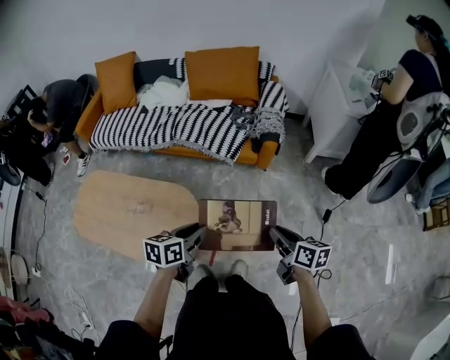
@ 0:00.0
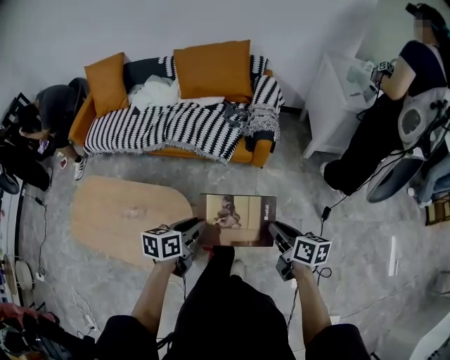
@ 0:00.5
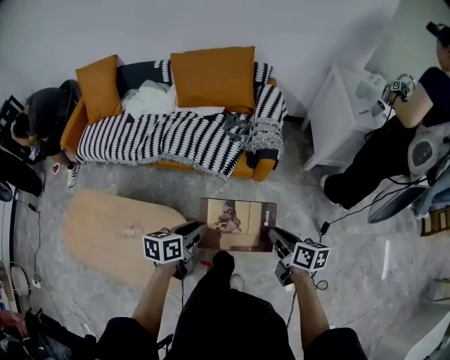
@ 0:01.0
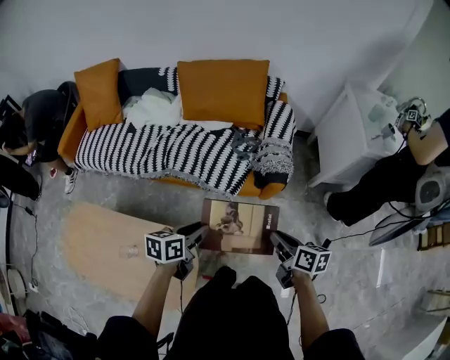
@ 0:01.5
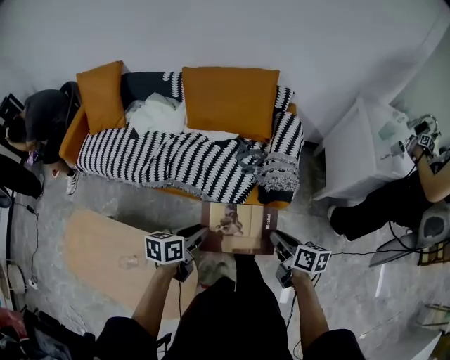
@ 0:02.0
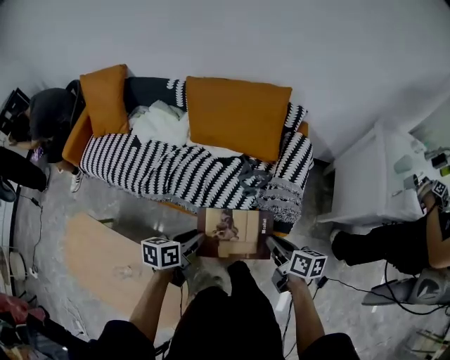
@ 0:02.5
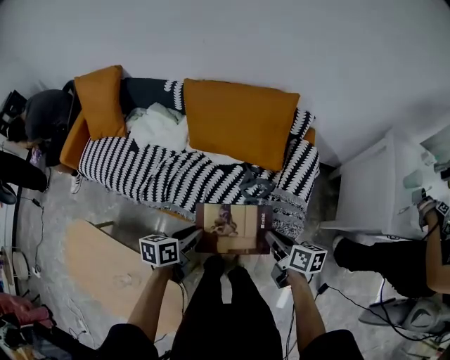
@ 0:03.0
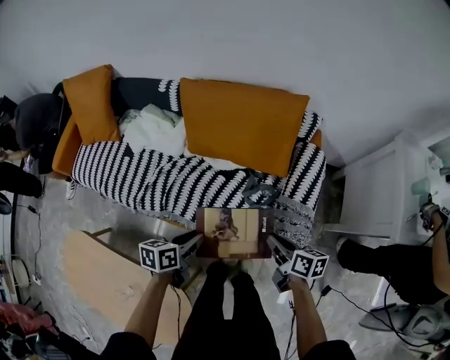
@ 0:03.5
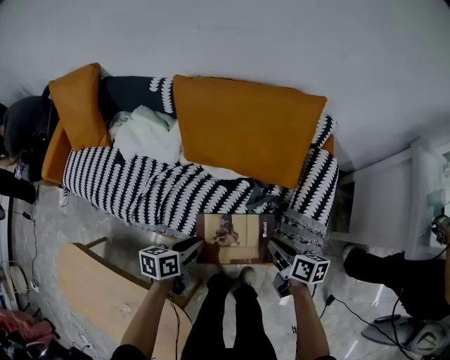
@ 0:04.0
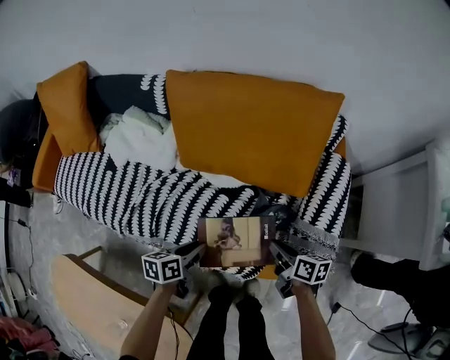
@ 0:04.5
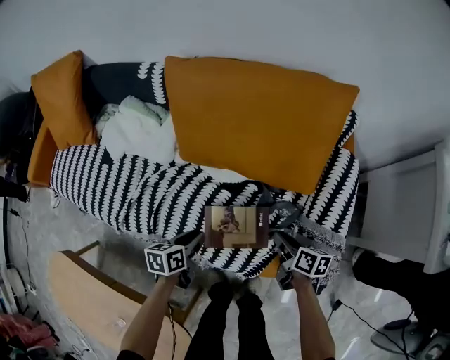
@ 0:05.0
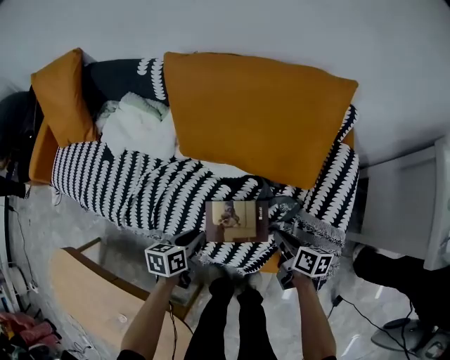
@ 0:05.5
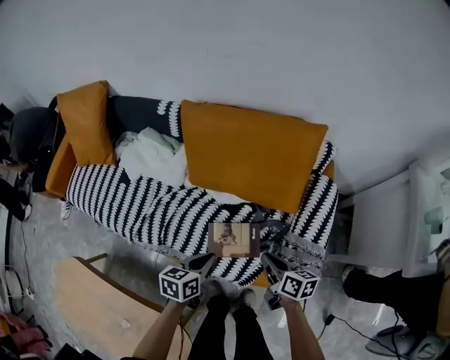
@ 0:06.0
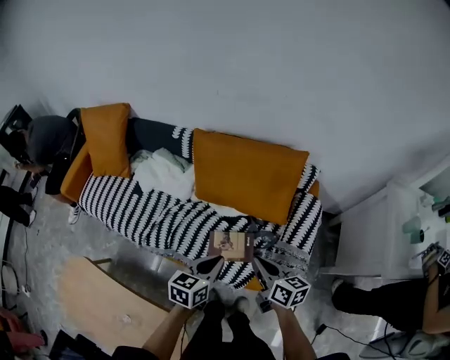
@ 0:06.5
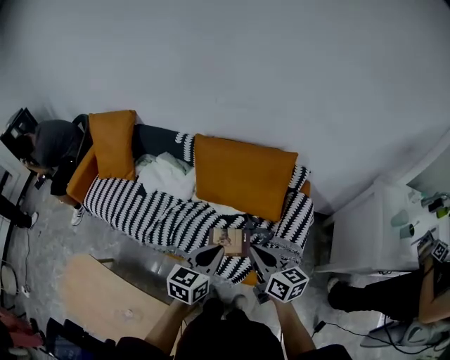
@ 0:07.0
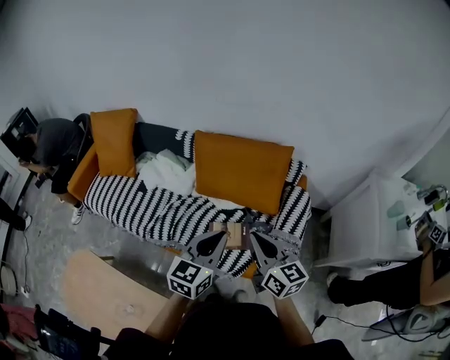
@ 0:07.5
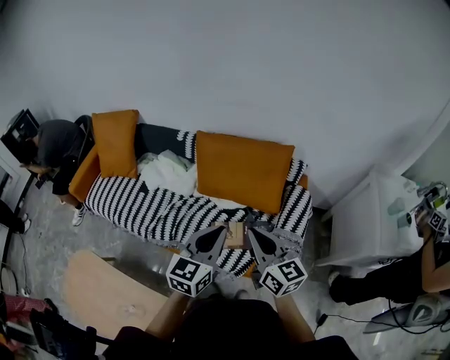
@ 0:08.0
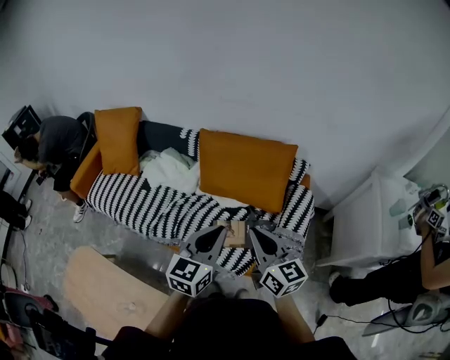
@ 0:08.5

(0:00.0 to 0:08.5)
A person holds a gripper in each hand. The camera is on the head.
0:00.0 - 0:02.0: The pair of grippers is taken forward, approximately 40 cm.
0:02.0 - 0:04.0: Both grippers travel together forward and downward, about 40 cm.
0:04.0 - 0:06.5: Both grippers travel together upward, some 20 cm. The left gripper rotates some 30 degrees, and closes. The right gripper changes its angle by some 20 degrees.
0:06.5 - 0:08.5: The left gripper is displaced upward by roughly 20 cm, and changes its angle by about 30 degrees. The right gripper heads upward and backward, covering approximately 20 cm, and changes its angle by approximately 30 degrees.

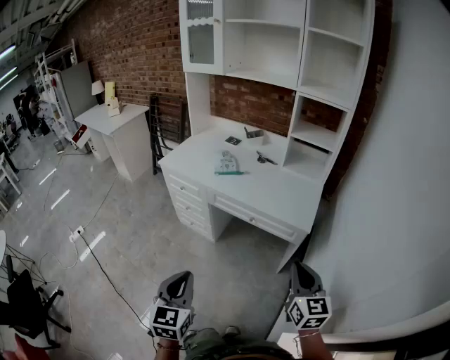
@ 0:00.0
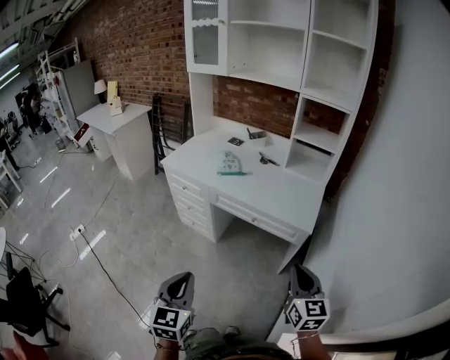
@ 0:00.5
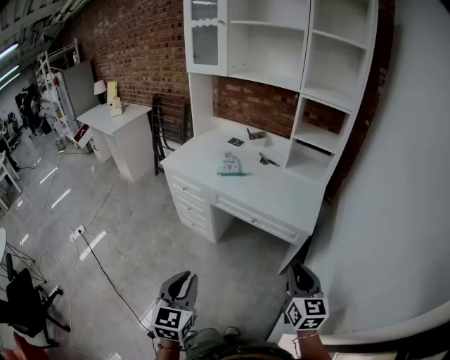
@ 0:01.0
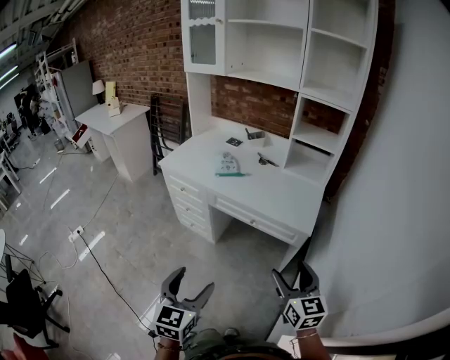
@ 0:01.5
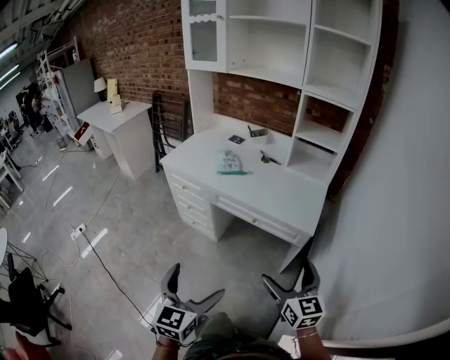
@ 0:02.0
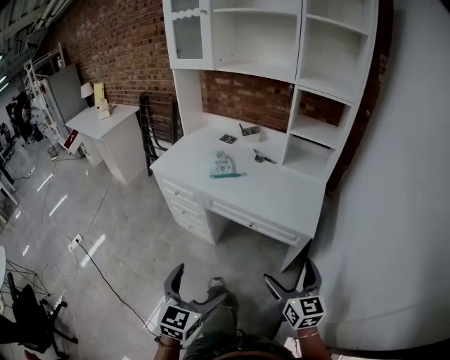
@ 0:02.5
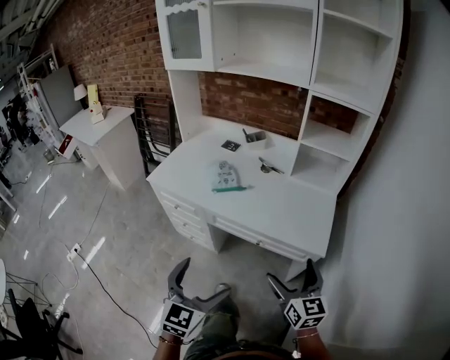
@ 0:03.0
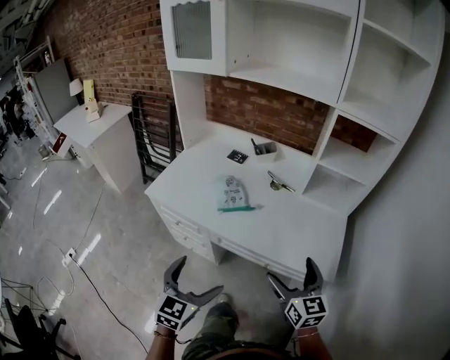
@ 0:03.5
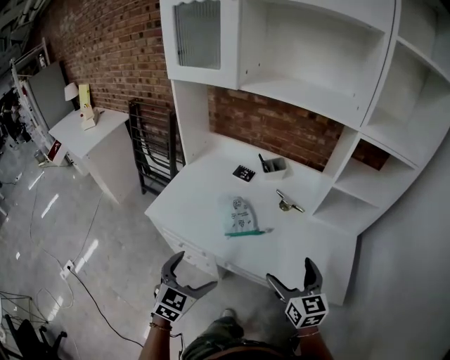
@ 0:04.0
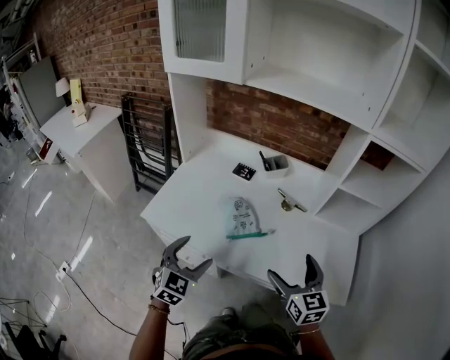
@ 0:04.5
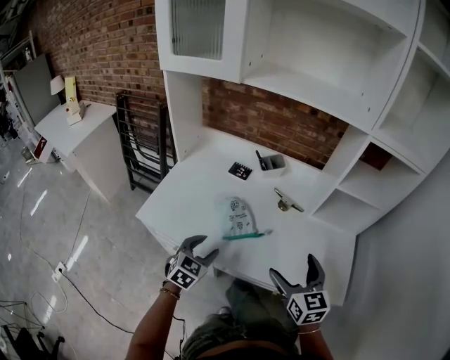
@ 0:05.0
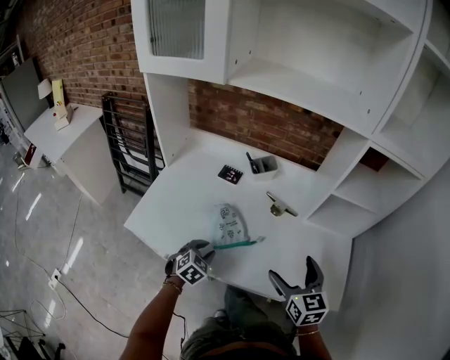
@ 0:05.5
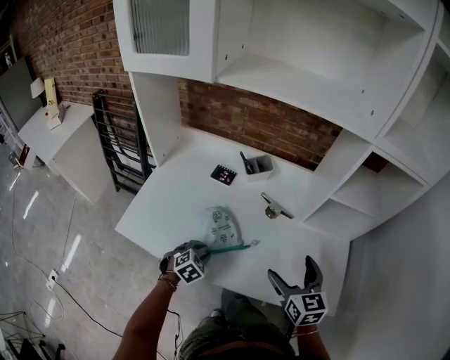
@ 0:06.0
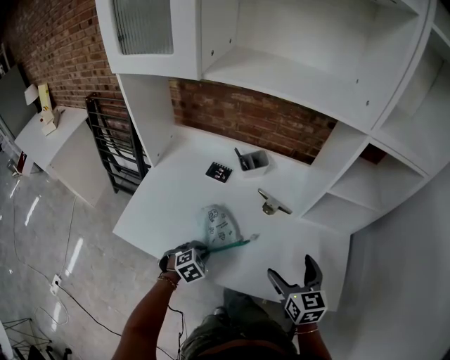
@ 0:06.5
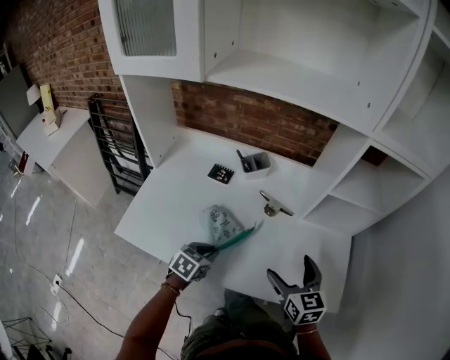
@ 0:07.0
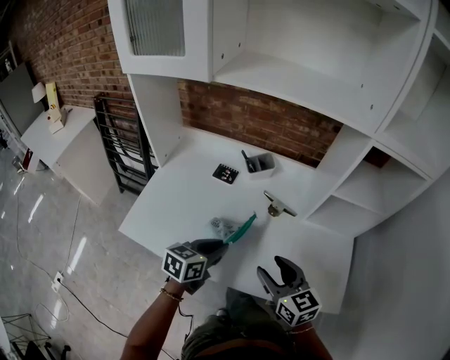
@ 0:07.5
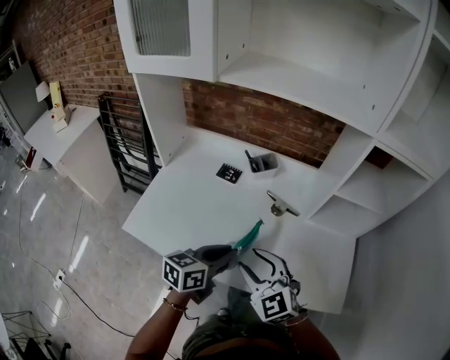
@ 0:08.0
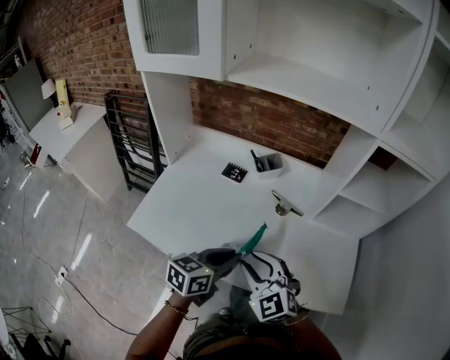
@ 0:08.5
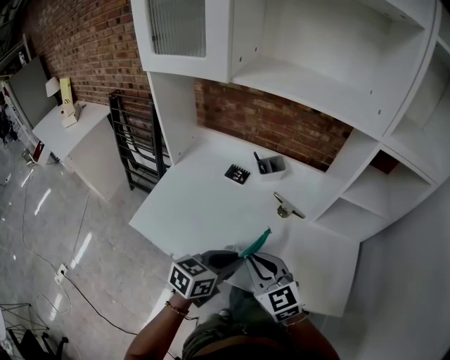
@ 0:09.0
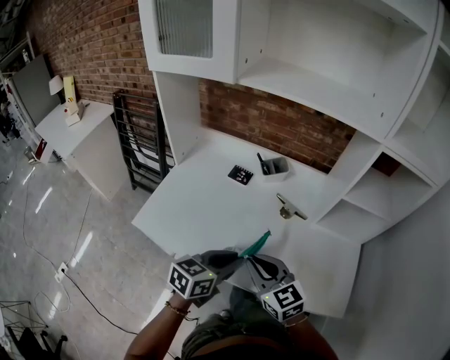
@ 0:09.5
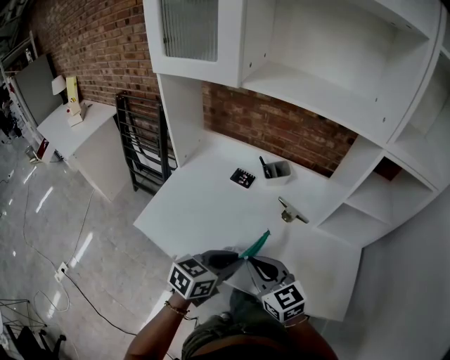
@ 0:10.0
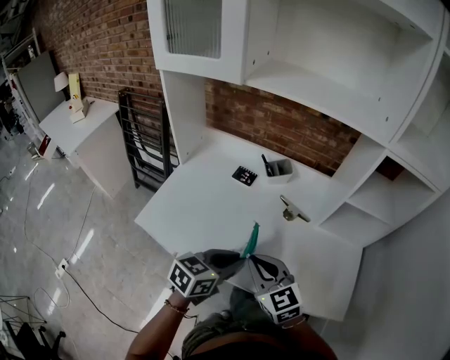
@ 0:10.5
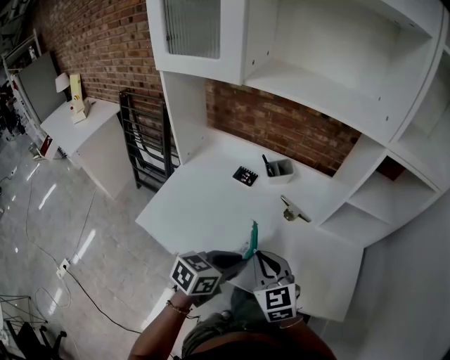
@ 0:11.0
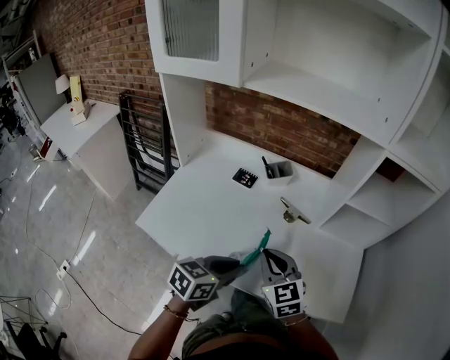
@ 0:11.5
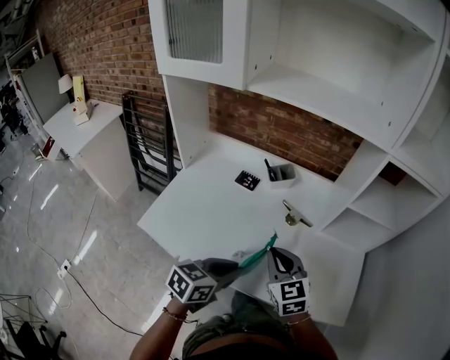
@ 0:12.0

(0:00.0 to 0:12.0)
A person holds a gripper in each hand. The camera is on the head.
0:00.0 - 0:02.0: The left gripper opens; the right gripper opens its fingers.
0:02.0 - 0:04.0: The pair of grippers is taken forward, about 40 cm. The left gripper turns by approximately 20 degrees.
0:04.0 - 0:06.0: The right gripper goes roughly 10 cm forward, while the left gripper shifts approximately 25 cm forward and downward, tilts its fingers approximately 30 degrees downward, and closes.
0:06.0 - 0:08.0: The right gripper travels to the left by some 15 cm, turns by about 40 degrees, and closes its fingers, while the left gripper goes approximately 20 cm upward, and points its fingers approximately 40 degrees further upward.
0:08.0 - 0:10.0: The right gripper rotates about 20 degrees.
0:10.0 - 0:12.0: The right gripper heads forward, covering about 5 cm.

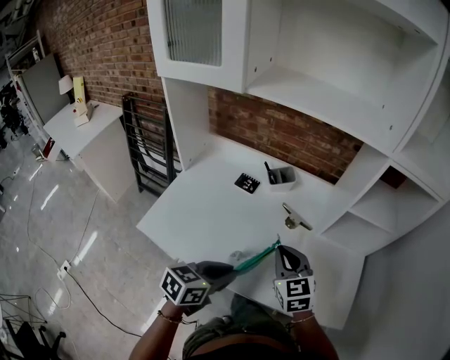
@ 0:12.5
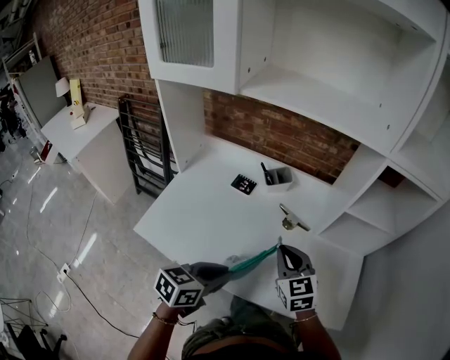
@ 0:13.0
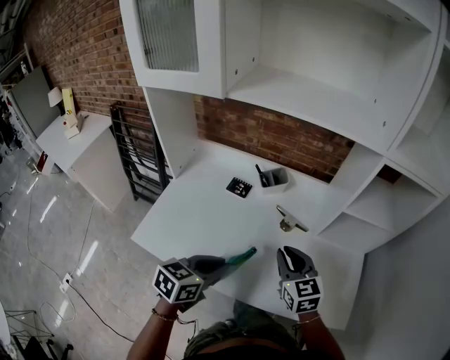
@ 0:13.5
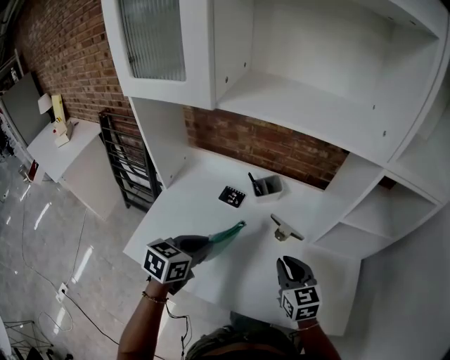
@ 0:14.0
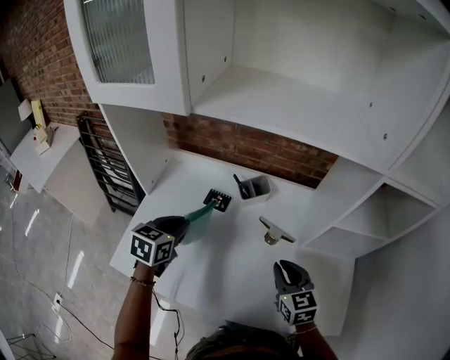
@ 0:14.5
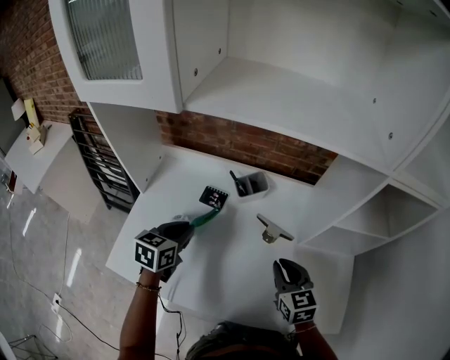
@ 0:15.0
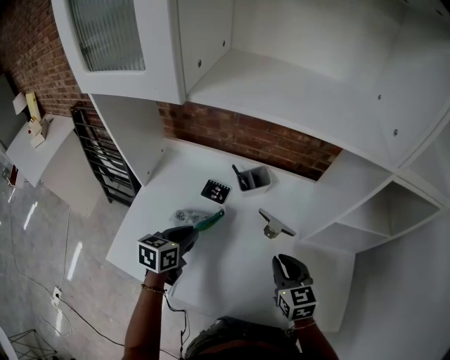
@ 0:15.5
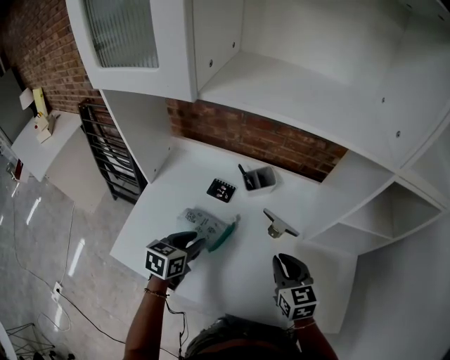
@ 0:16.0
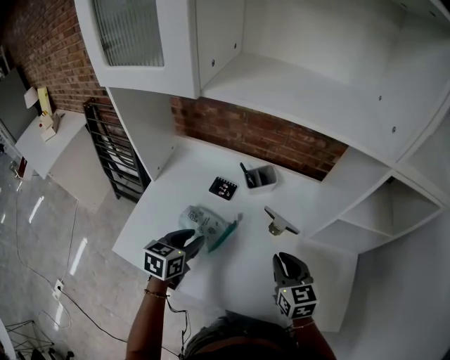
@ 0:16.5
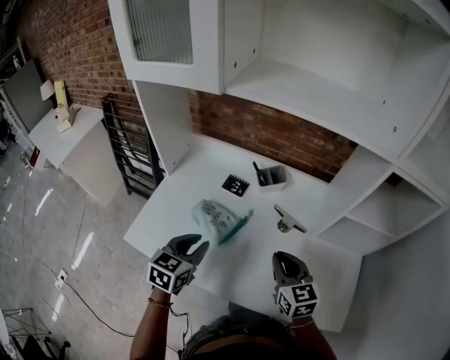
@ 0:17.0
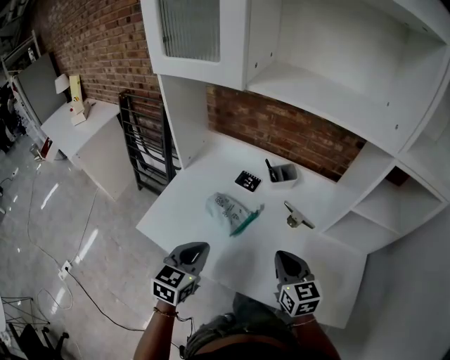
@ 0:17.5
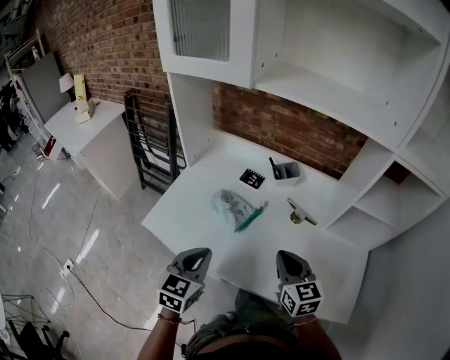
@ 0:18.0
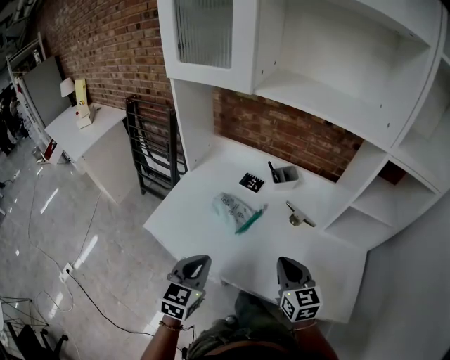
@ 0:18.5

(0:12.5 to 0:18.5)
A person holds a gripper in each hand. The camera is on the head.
0:12.5 - 0:14.5: The right gripper goes some 10 cm forward. The left gripper shifts approximately 30 cm forward and to the left, and turns by some 20 degrees.
0:14.5 - 0:16.5: The left gripper is displaced backward and downward by about 10 cm.
0:16.5 - 0:18.5: The left gripper moves backward, some 20 cm, and changes its angle by roughly 20 degrees. Meanwhile the right gripper heads backward and to the left, covering some 15 cm.
